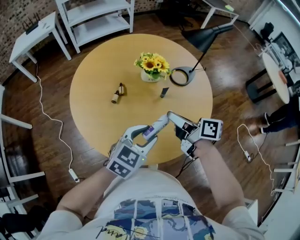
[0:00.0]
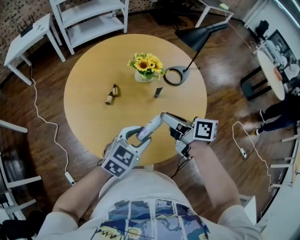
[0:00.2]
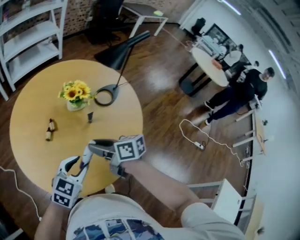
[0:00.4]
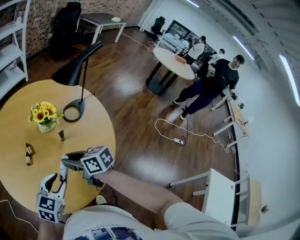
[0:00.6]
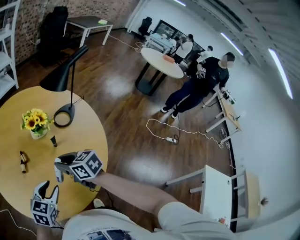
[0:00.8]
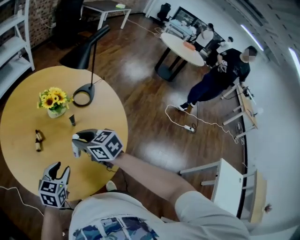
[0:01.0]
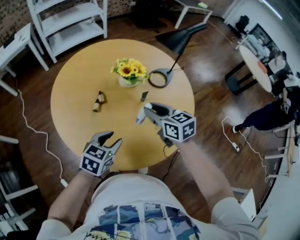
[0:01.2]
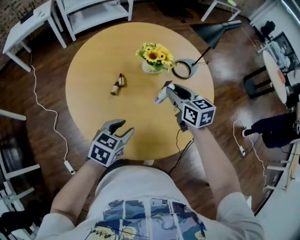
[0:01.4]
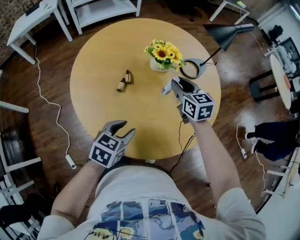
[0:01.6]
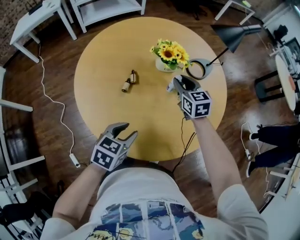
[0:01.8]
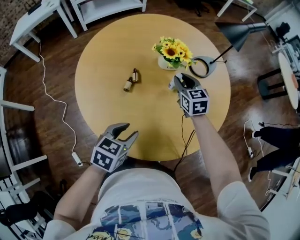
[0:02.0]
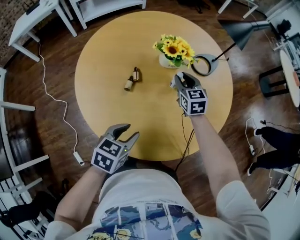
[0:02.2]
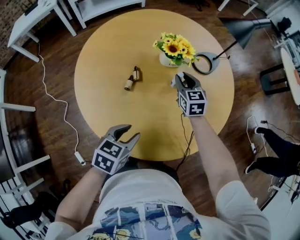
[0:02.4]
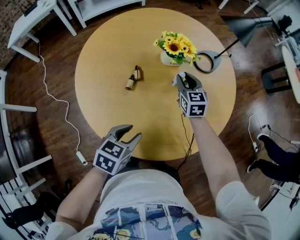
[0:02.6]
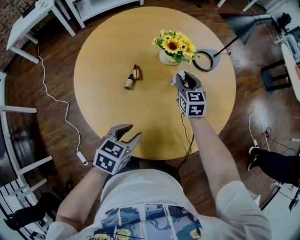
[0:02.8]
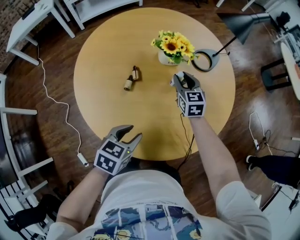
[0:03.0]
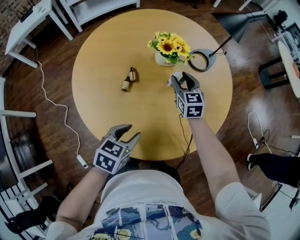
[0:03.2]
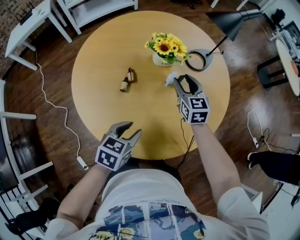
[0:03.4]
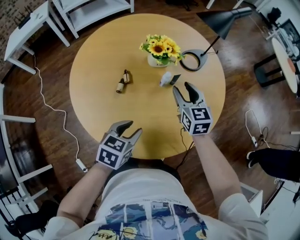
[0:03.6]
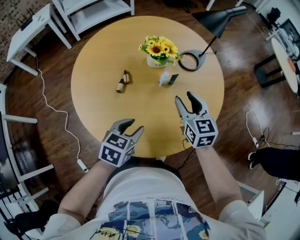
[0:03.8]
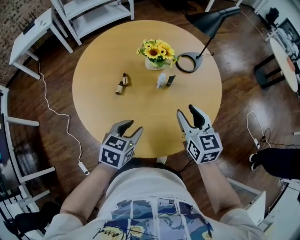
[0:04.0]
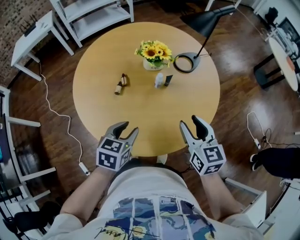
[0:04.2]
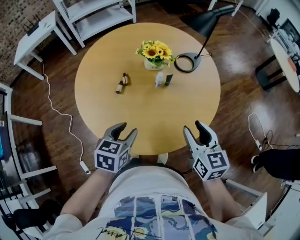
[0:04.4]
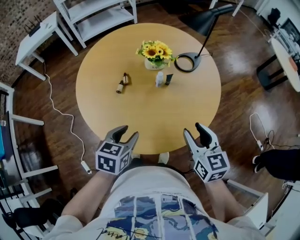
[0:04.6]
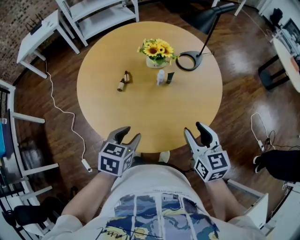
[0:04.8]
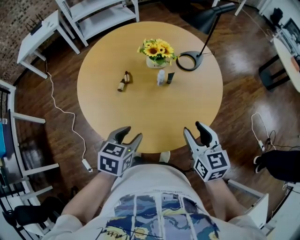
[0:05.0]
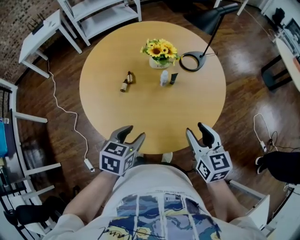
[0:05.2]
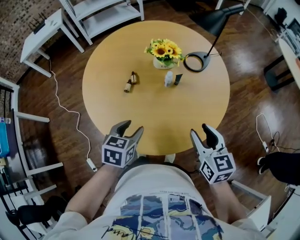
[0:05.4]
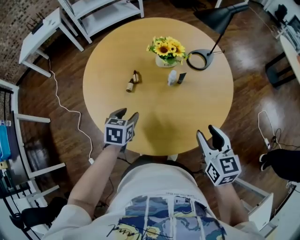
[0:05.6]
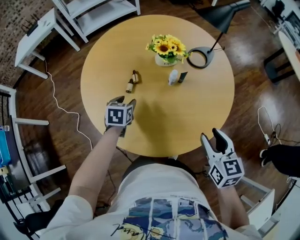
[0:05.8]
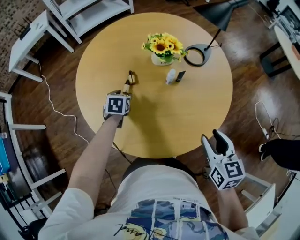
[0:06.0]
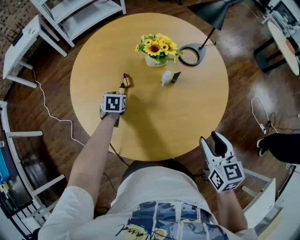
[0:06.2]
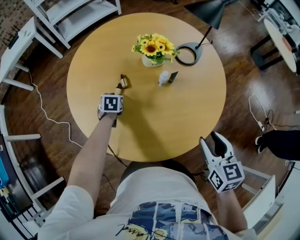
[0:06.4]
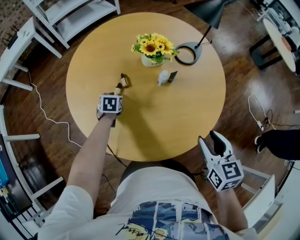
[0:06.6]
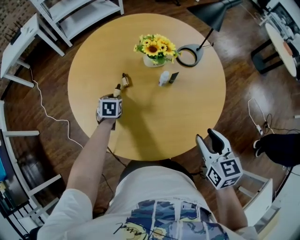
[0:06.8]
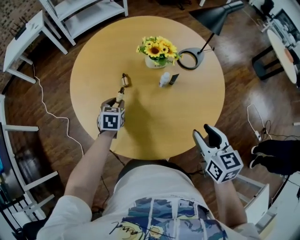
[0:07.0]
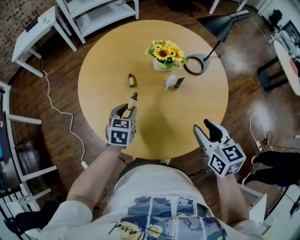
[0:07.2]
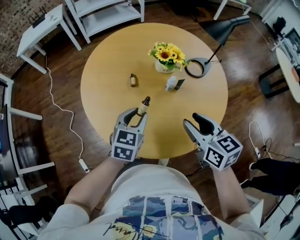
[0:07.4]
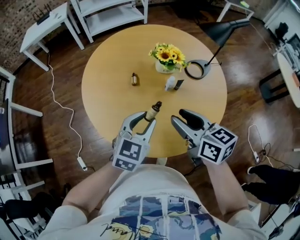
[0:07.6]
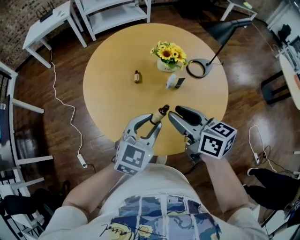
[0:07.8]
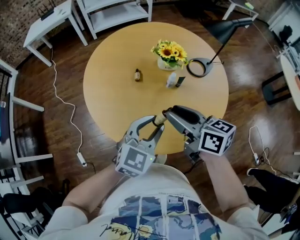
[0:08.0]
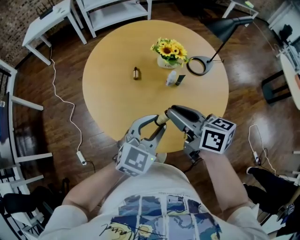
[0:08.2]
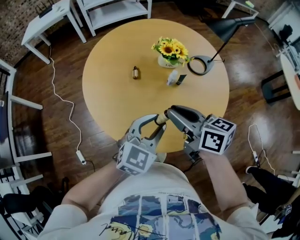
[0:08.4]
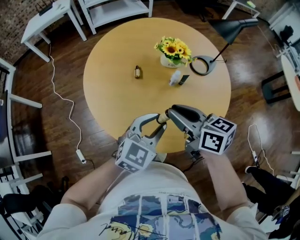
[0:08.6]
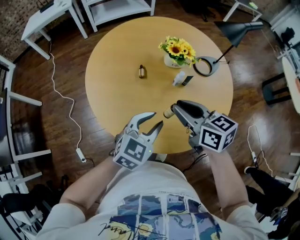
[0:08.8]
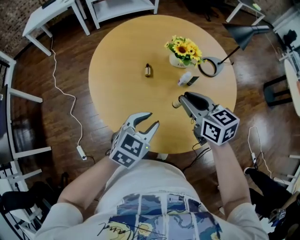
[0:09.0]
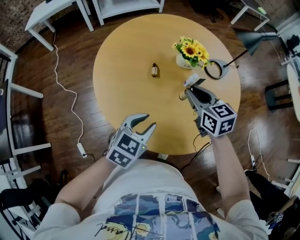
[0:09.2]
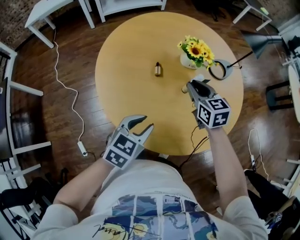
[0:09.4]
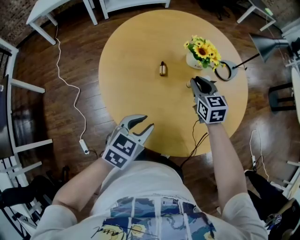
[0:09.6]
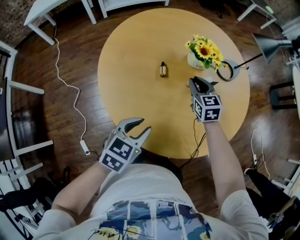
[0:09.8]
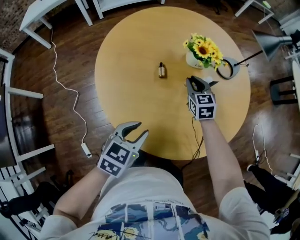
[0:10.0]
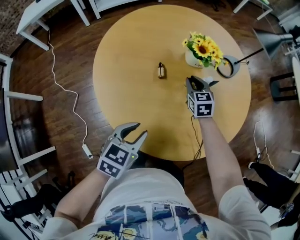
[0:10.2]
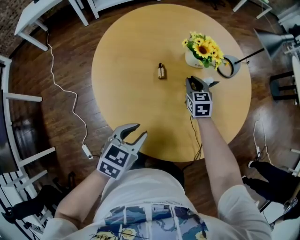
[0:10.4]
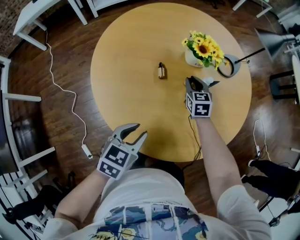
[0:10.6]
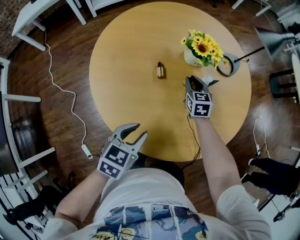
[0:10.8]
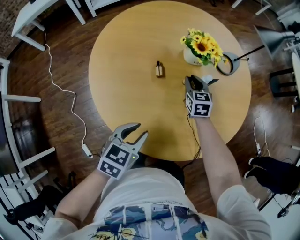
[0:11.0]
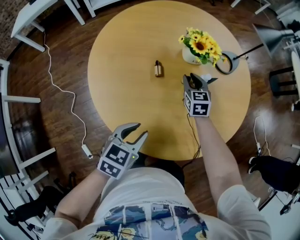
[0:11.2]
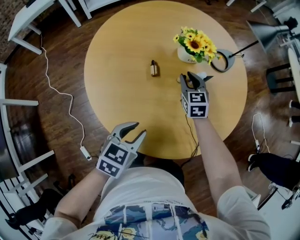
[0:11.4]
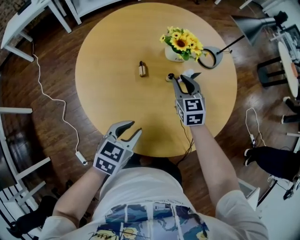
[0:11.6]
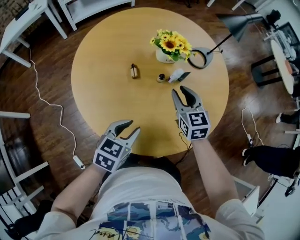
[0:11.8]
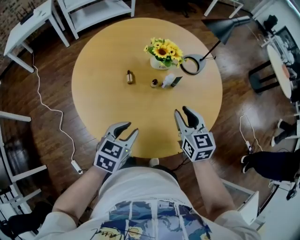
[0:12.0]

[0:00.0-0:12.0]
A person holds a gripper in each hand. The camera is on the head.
0:00.0 to 0:01.6: The right gripper goes some 15 cm forward, and twists approximately 50 degrees counterclockwise, seen from behind; the left gripper is displaced to the left and downward by about 15 cm, and swivels approximately 20 degrees.
0:01.6 to 0:03.0: The right gripper heads downward, covering some 10 cm.
0:03.0 to 0:04.4: The left gripper heads upward and to the right, covering some 10 cm, while the right gripper moves backward, to the right and upward, about 35 cm.
0:04.4 to 0:06.0: The left gripper moves forward, downward and to the left, some 30 cm.
0:06.0 to 0:07.6: The left gripper moves upward, backward and to the right, roughly 30 cm, and angles its fingers upward, by some 30 degrees; the right gripper is displaced to the left and upward by approximately 15 cm, and changes its angle by about 30 degrees.
0:07.6 to 0:09.0: The right gripper goes roughly 5 cm forward, and closes up, while the left gripper ends up approximately 5 cm from where it was.
0:09.0 to 0:10.4: The left gripper shifts roughly 15 cm to the left and downward. Meanwhile the right gripper shifts some 25 cm downward and forward, and rotates some 30 degrees.
0:10.4 to 0:12.0: The right gripper is displaced backward, upward and to the right by some 25 cm. The left gripper shifts approximately 10 cm to the right.

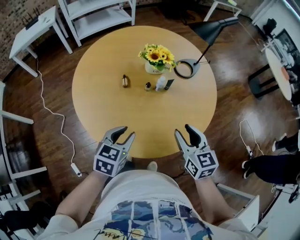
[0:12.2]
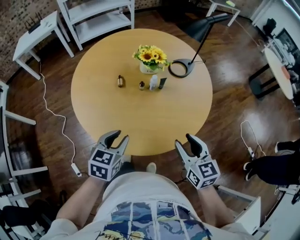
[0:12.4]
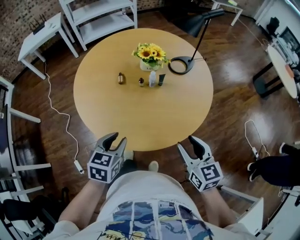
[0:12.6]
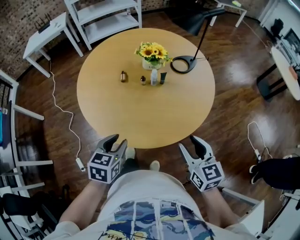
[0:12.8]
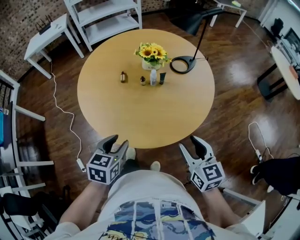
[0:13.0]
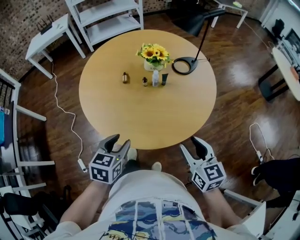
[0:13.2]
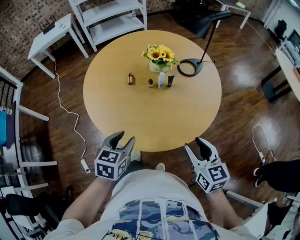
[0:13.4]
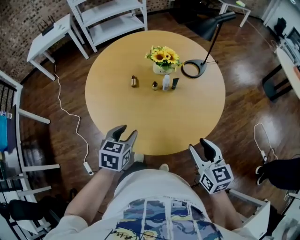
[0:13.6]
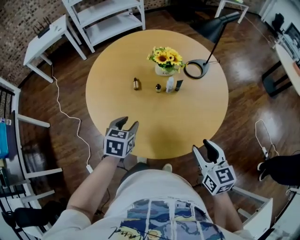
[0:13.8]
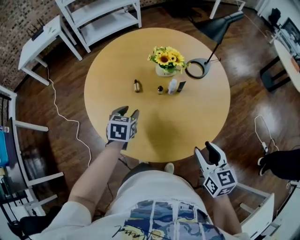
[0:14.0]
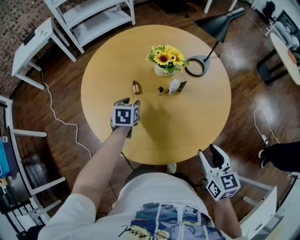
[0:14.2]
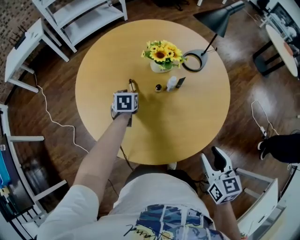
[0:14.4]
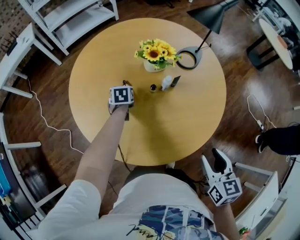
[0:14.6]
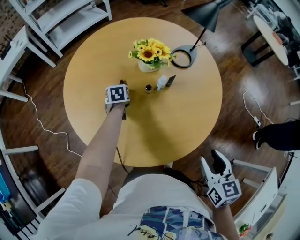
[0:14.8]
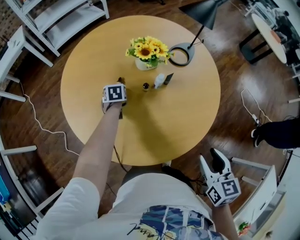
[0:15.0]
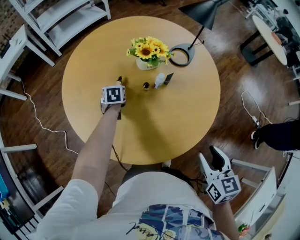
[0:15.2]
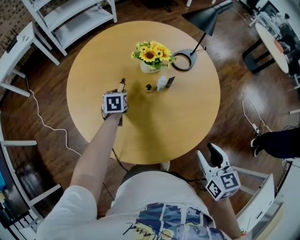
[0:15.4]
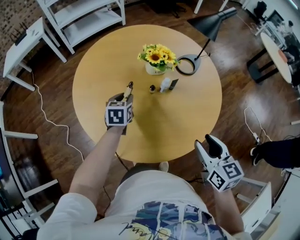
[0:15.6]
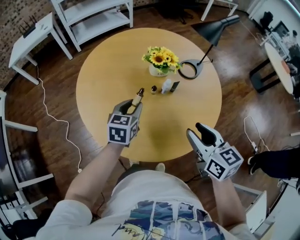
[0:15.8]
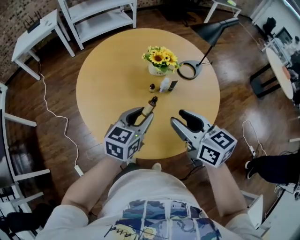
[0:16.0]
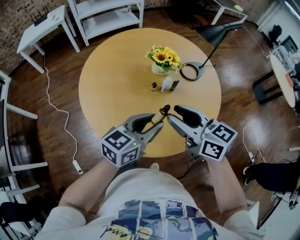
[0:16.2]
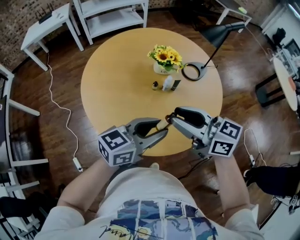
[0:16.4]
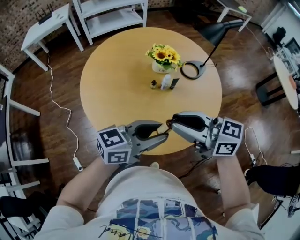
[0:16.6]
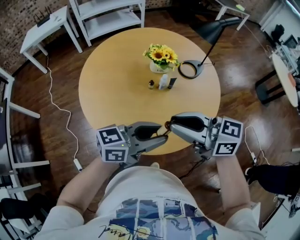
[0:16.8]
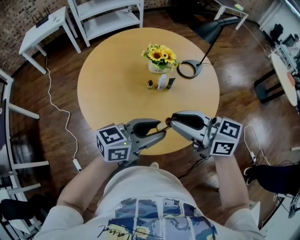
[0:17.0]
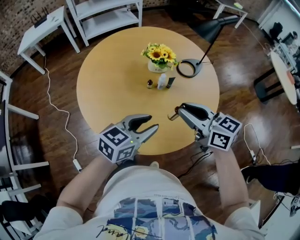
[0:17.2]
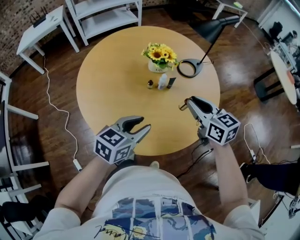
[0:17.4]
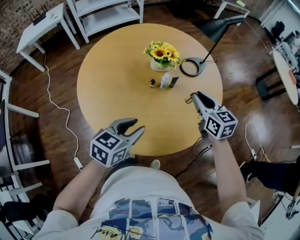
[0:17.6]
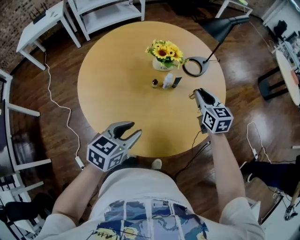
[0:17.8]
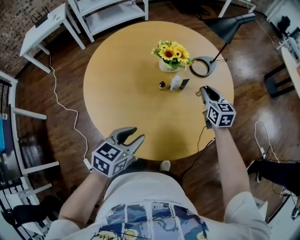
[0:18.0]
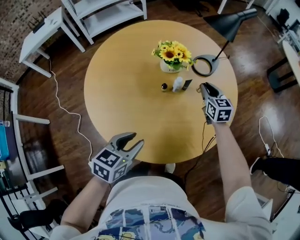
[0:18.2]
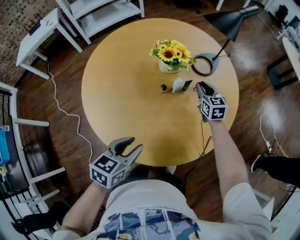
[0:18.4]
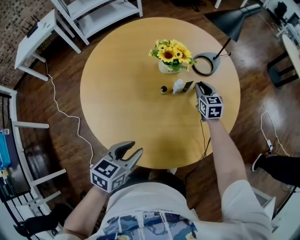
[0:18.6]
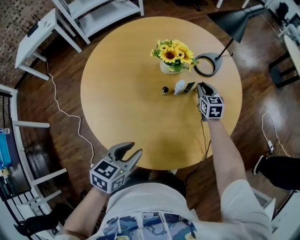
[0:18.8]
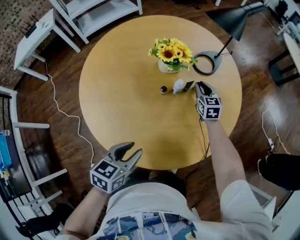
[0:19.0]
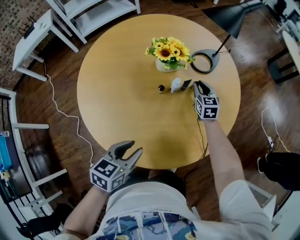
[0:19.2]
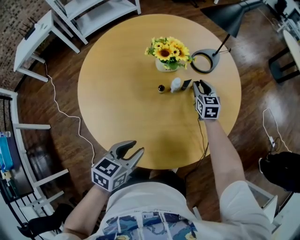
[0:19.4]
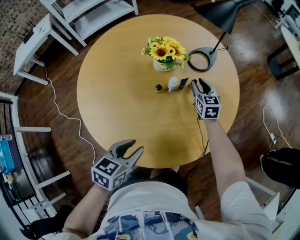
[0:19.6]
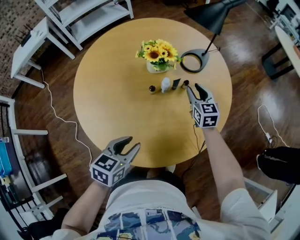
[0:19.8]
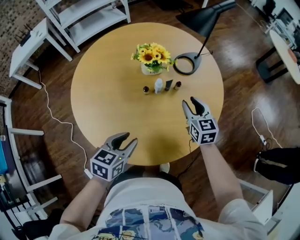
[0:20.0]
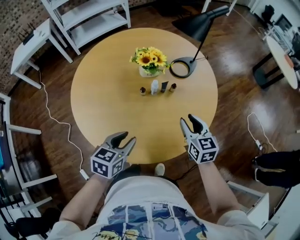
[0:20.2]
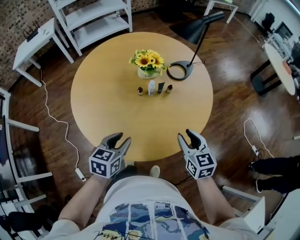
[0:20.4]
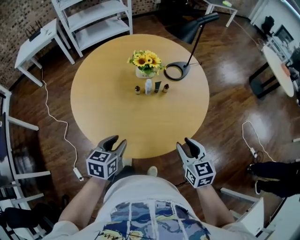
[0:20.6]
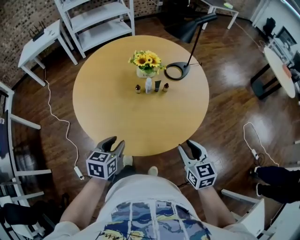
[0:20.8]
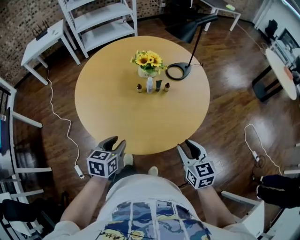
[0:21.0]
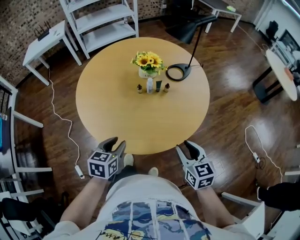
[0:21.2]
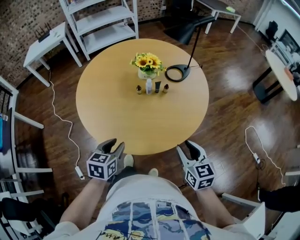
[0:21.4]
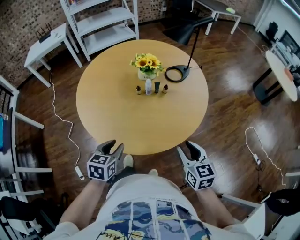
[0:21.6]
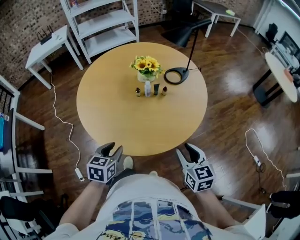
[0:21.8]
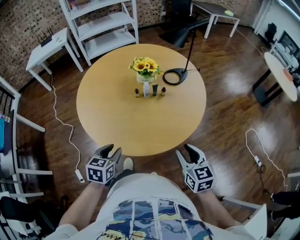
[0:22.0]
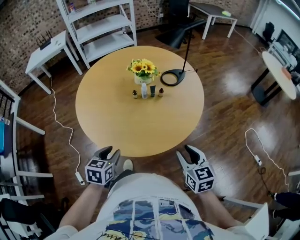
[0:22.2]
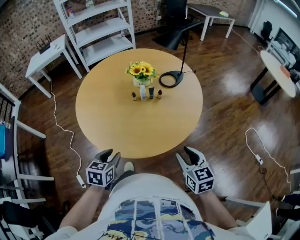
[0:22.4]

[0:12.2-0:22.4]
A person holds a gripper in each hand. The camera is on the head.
0:12.2 to 0:13.6: The left gripper reaches roughly 10 cm backward, then returns. The right gripper is displaced backward and to the right by approximately 10 cm.
0:13.6 to 0:15.2: The left gripper moves forward and downward, some 40 cm; the right gripper swivels about 20 degrees.
0:15.2 to 0:16.6: The left gripper moves some 50 cm, and tips its fingers upward by roughly 60 degrees; the right gripper is displaced upward by about 15 cm, changes its angle by about 70 degrees, and closes.
0:16.6 to 0:18.0: The right gripper ends up about 35 cm from where it was, and changes its angle by some 60 degrees; the left gripper shifts by approximately 15 cm, and tilts its fingers about 30 degrees downward.
0:18.0 to 0:19.4: The left gripper shifts by roughly 5 cm; the right gripper shifts roughly 15 cm downward and forward.
0:19.4 to 0:21.0: The right gripper is displaced backward and upward by about 40 cm. Meanwhile the left gripper heads backward and to the right, covering approximately 10 cm, and changes its angle by approximately 20 degrees.
0:21.0 to 0:22.4: The left gripper heads backward, covering about 5 cm. Meanwhile the right gripper ends up about 5 cm from where it was.

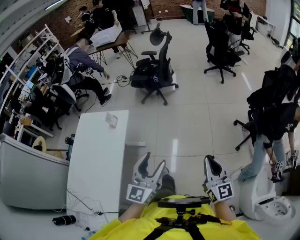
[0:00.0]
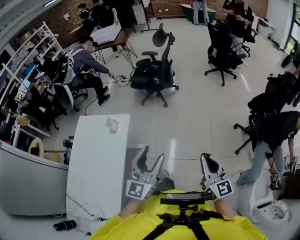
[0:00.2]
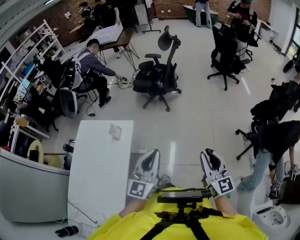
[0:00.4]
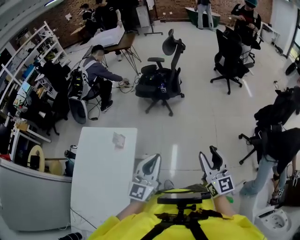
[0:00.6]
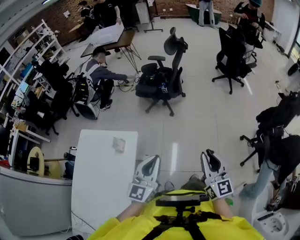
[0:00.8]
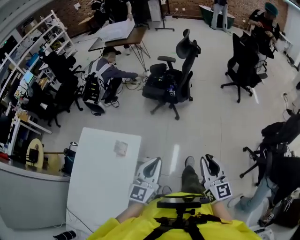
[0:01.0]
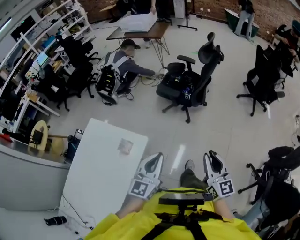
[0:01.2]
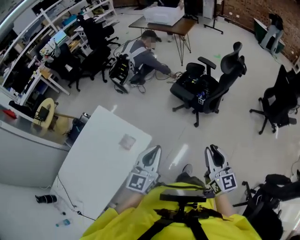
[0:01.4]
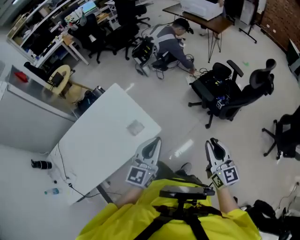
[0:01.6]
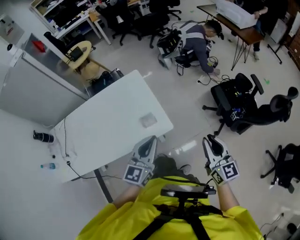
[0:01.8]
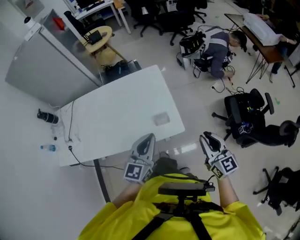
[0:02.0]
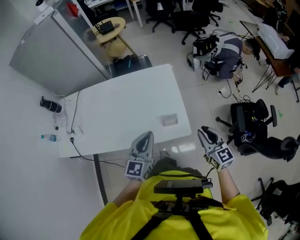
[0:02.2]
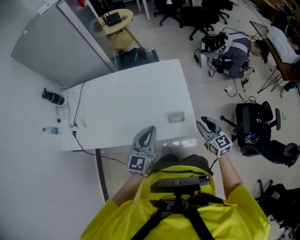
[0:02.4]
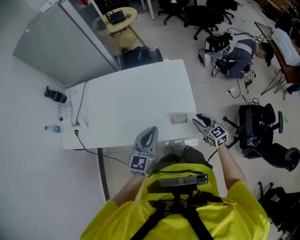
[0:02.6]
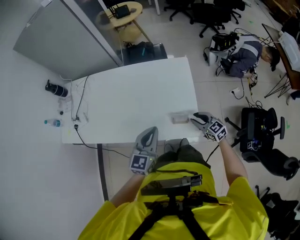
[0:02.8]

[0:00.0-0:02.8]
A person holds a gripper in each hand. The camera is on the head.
0:00.0 to 0:01.4: Both grippers are carried roughly 50 cm. The right gripper changes its angle by roughly 30 degrees, and opens, then closes again. The left gripper changes its angle by some 30 degrees, and closes up.
0:01.4 to 0:02.8: The right gripper changes place by some 50 cm, and swivels about 90 degrees. The left gripper changes place by about 30 cm, and turns by about 60 degrees.
